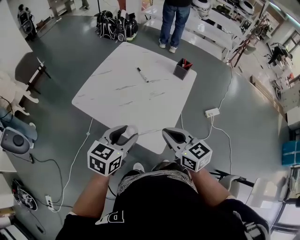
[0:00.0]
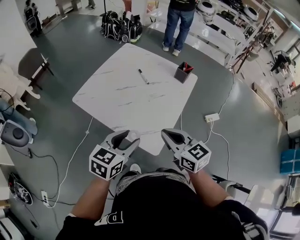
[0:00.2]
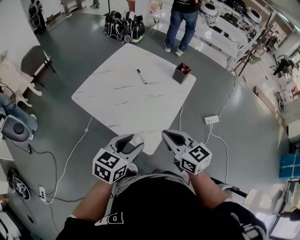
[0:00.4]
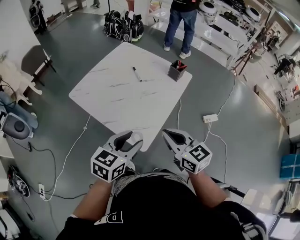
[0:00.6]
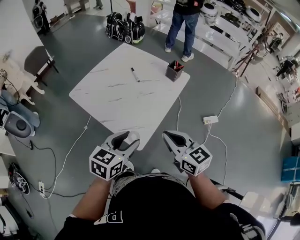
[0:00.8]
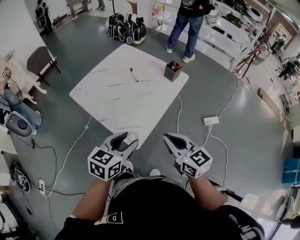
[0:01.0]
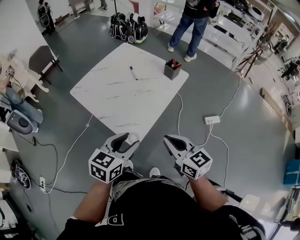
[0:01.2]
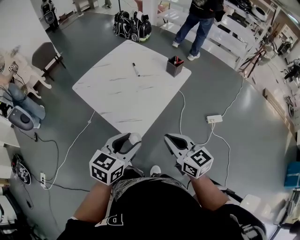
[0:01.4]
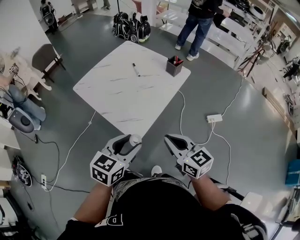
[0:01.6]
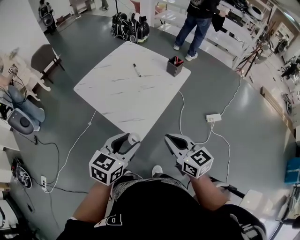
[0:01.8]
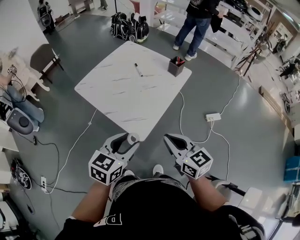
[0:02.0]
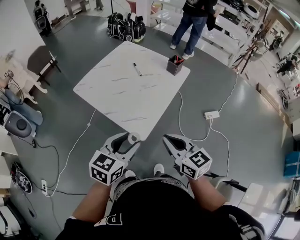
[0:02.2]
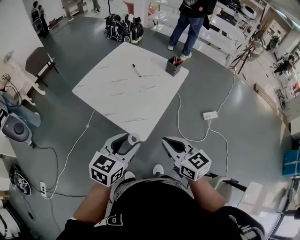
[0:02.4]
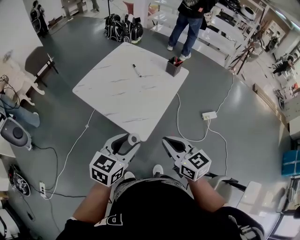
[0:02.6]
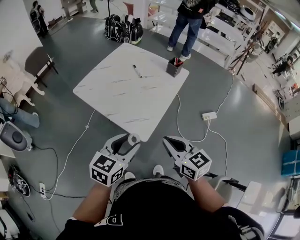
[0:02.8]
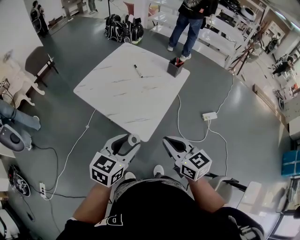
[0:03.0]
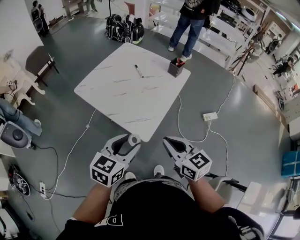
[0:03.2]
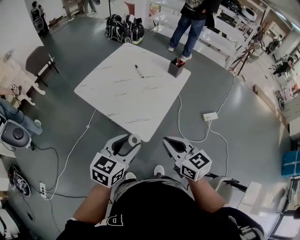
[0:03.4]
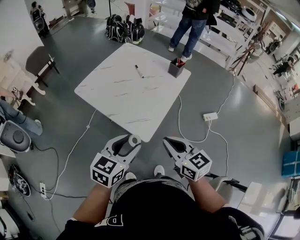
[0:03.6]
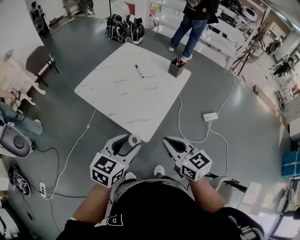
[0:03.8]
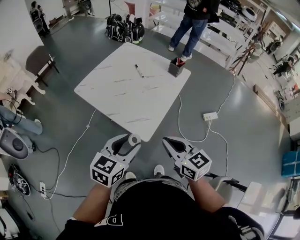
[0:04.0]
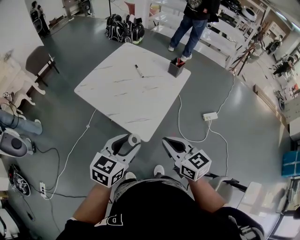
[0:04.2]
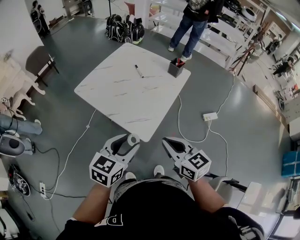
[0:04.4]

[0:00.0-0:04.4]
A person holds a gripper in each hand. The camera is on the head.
0:00.0 to 0:01.4: The grippers both shift to the right and backward by some 20 cm.
0:01.4 to 0:03.0: Both grippers travel together to the left, roughly 10 cm.
0:03.0 to 0:04.4: Neither gripper changes place.

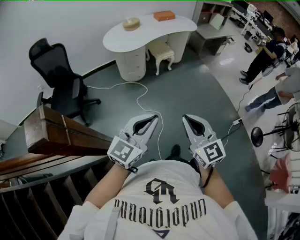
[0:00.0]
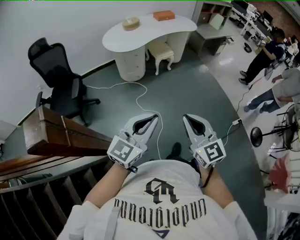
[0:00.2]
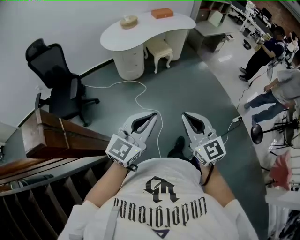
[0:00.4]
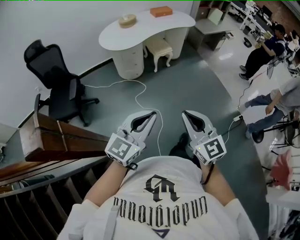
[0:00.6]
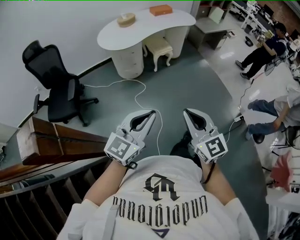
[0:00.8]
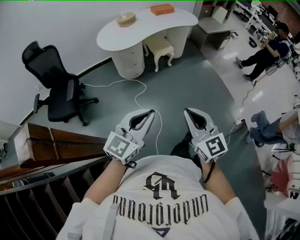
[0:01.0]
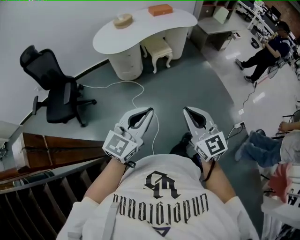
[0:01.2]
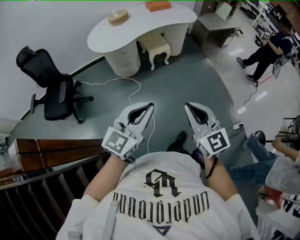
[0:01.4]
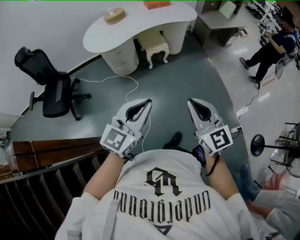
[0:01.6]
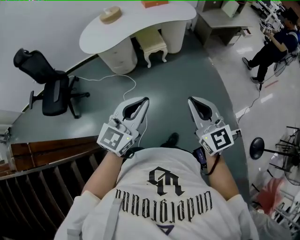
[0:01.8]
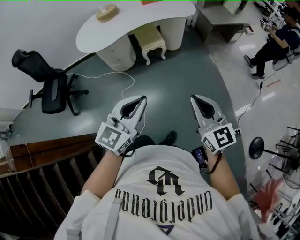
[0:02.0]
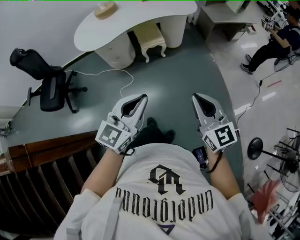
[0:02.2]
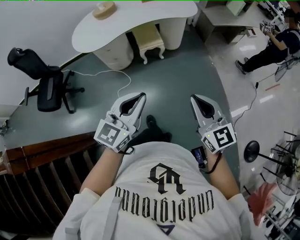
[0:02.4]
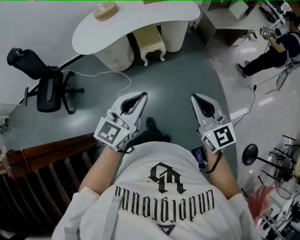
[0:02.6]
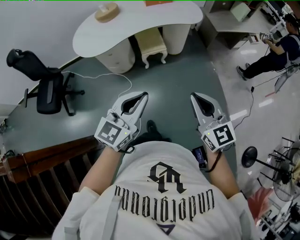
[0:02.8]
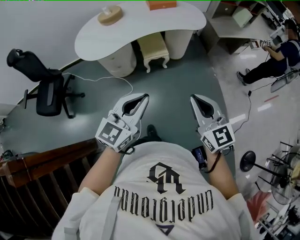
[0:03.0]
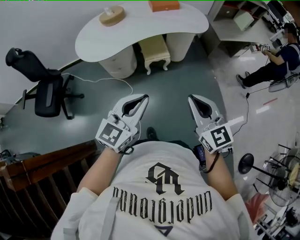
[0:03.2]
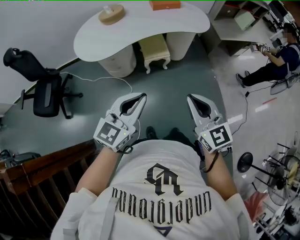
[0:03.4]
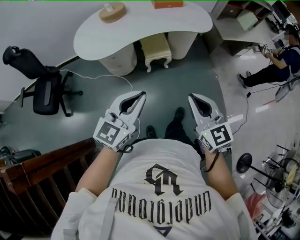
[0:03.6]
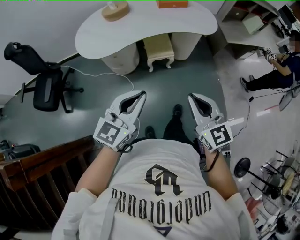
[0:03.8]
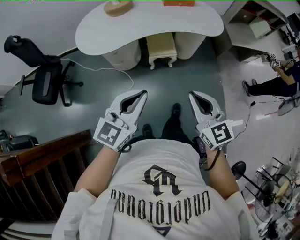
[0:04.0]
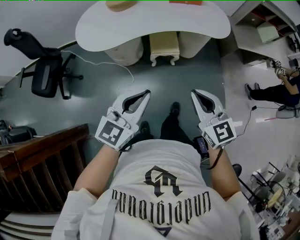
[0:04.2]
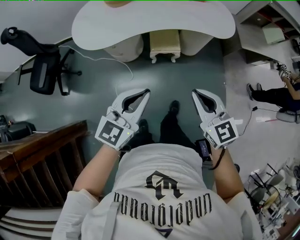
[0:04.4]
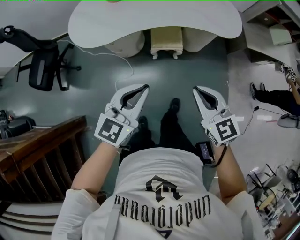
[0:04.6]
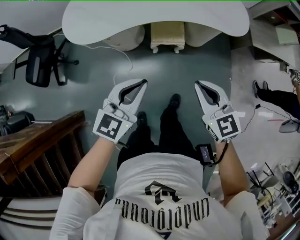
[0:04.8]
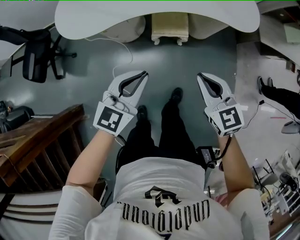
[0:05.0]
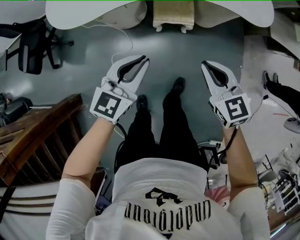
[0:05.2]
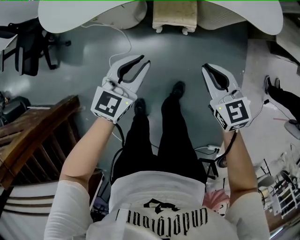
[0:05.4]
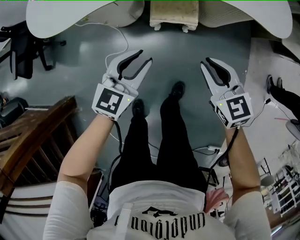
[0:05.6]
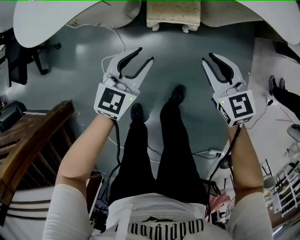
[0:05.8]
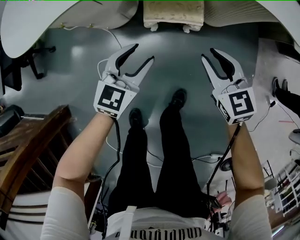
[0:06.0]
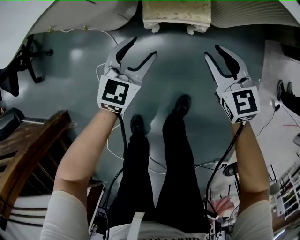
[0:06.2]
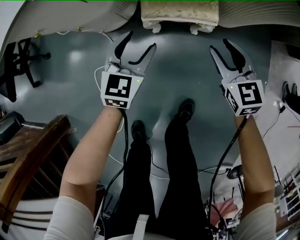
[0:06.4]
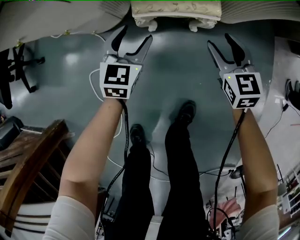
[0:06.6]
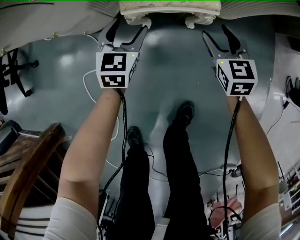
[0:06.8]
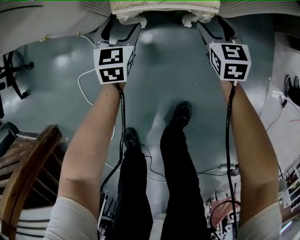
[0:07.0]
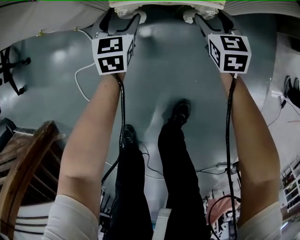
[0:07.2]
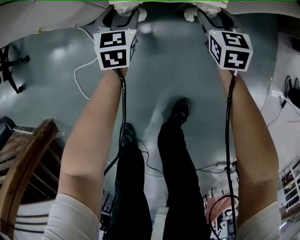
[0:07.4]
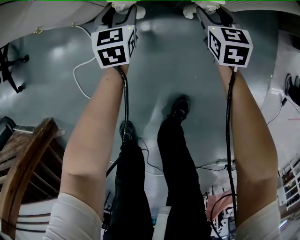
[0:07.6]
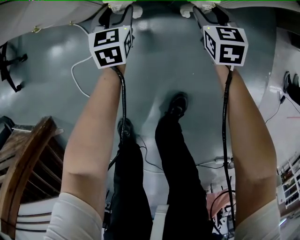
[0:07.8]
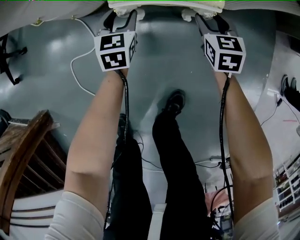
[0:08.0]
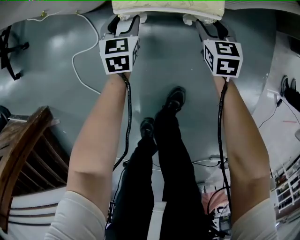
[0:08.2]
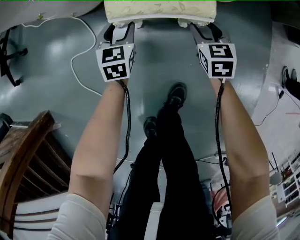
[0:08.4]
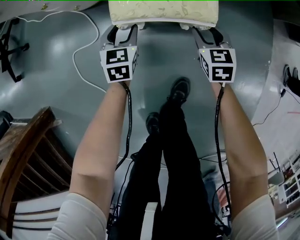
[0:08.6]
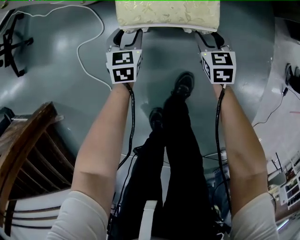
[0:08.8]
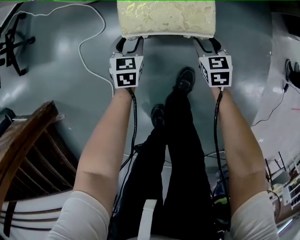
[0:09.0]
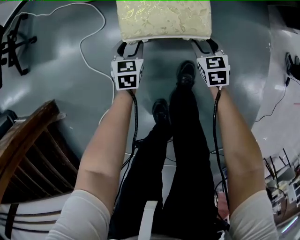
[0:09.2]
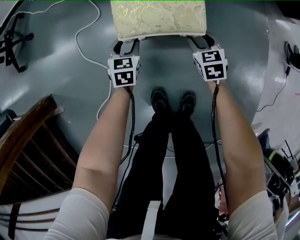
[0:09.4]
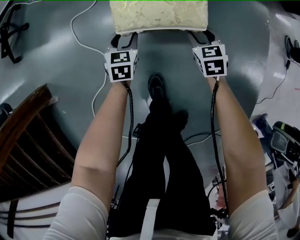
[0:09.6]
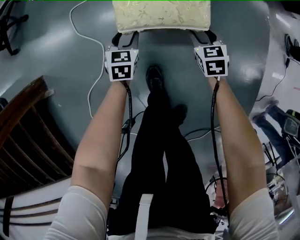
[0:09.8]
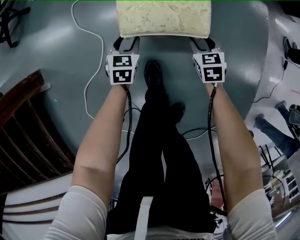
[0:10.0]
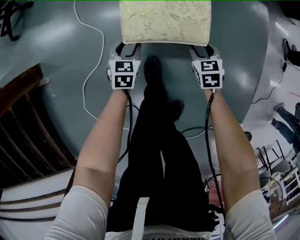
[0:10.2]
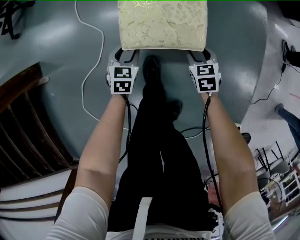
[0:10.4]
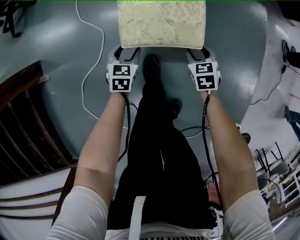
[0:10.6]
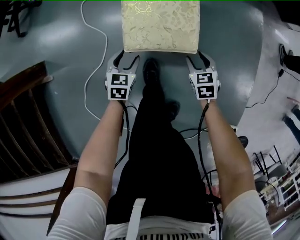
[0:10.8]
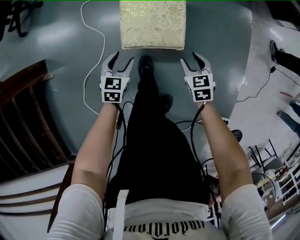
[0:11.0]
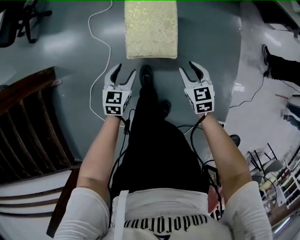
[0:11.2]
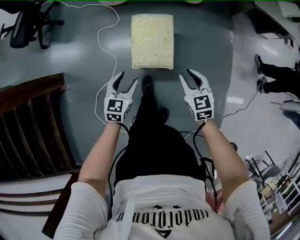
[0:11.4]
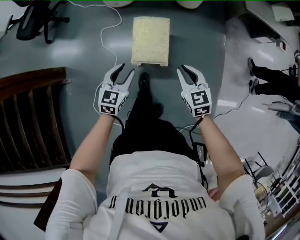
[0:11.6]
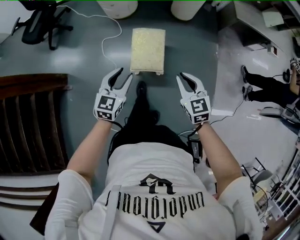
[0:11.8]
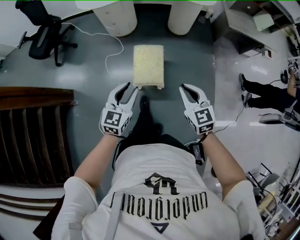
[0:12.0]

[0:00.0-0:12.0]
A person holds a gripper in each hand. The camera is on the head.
0:00.0 to 0:01.6: Both grippers move forward and to the right, roughly 40 cm.
0:01.6 to 0:03.0: Both grippers move forward, approximately 25 cm.
0:03.0 to 0:04.4: Both grippers travel together forward and downward, some 20 cm.
0:04.4 to 0:06.0: The two grippers go about 50 cm downward and forward. The right gripper opens. Meanwhile the left gripper opens its fingers.
0:06.0 to 0:07.6: The right gripper moves downward, some 35 cm, changes its angle by about 20 degrees, and opens, while the left gripper is displaced downward and forward by about 35 cm, and swivels some 30 degrees.
0:07.6 to 0:09.0: Both grippers move backward, approximately 30 cm.
0:09.0 to 0:10.4: Both grippers move backward, some 30 cm.
0:10.4 to 0:12.0: The two grippers go roughly 70 cm upward. The right gripper tips its fingers upward by roughly 30 degrees, and closes its fingers; the left gripper angles its fingers upward, by some 30 degrees.

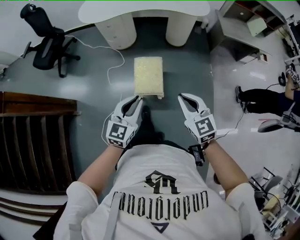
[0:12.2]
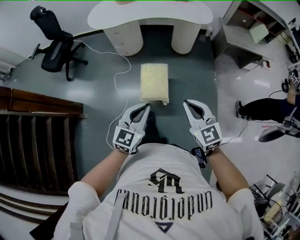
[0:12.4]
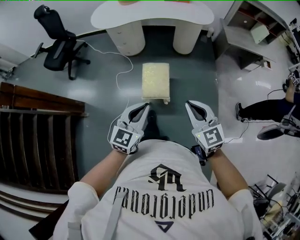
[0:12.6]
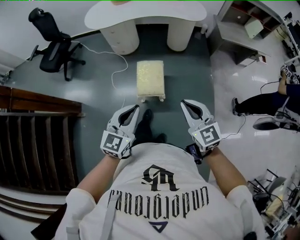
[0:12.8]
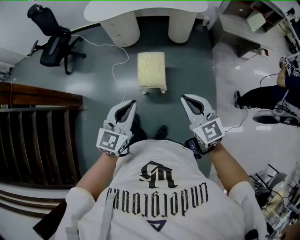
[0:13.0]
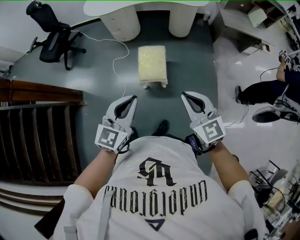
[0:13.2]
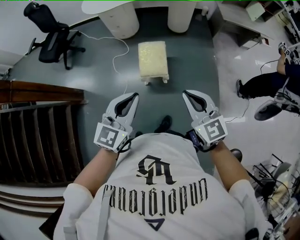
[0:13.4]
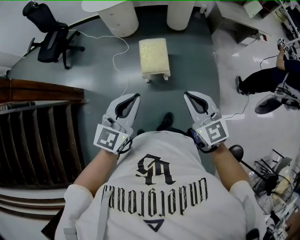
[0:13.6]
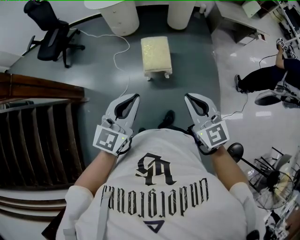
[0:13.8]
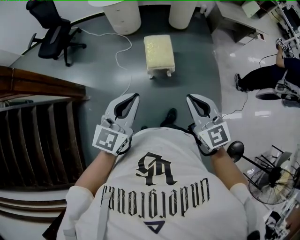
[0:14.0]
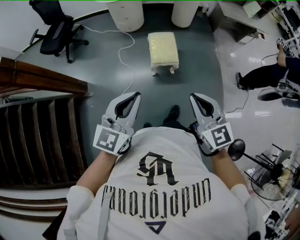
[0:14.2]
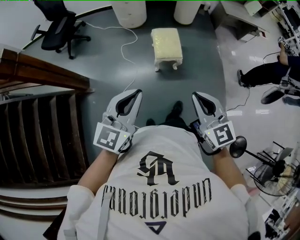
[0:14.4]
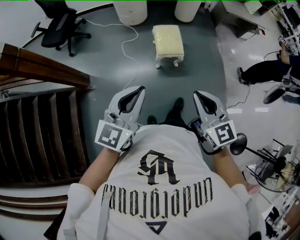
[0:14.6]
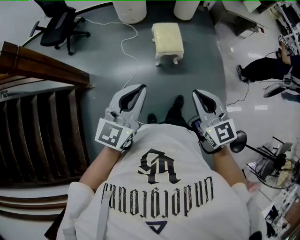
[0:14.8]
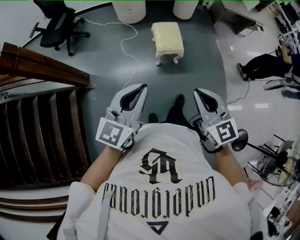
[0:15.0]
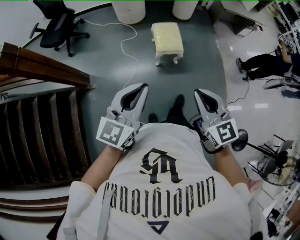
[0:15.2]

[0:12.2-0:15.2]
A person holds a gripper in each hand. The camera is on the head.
0:12.2 to 0:13.8: The two grippers go about 25 cm backward, upward and to the left.
0:13.8 to 0:15.2: The left gripper moves to the left and backward, about 20 cm. Meanwhile the right gripper heads backward and to the left, covering approximately 20 cm.

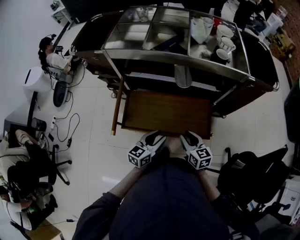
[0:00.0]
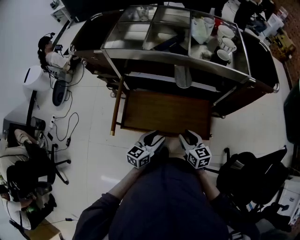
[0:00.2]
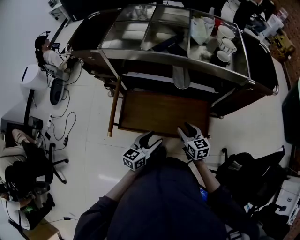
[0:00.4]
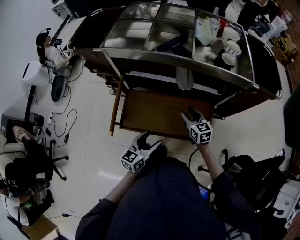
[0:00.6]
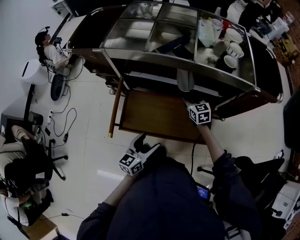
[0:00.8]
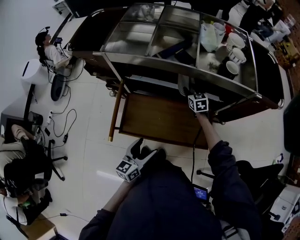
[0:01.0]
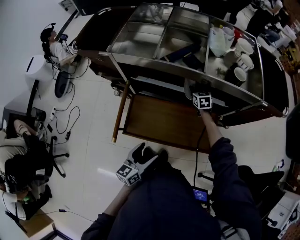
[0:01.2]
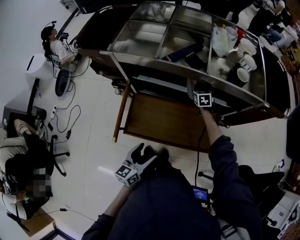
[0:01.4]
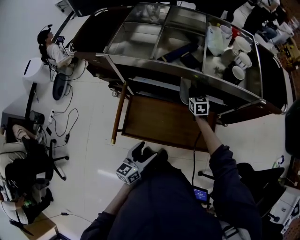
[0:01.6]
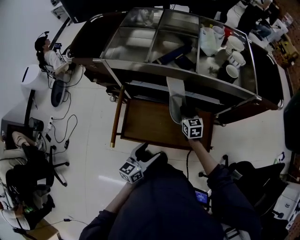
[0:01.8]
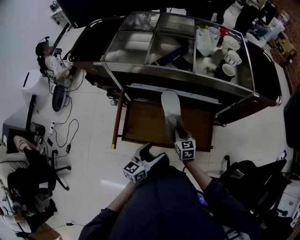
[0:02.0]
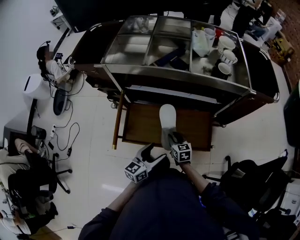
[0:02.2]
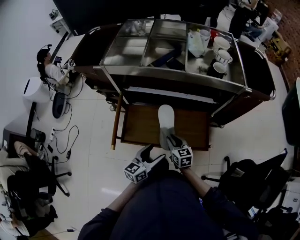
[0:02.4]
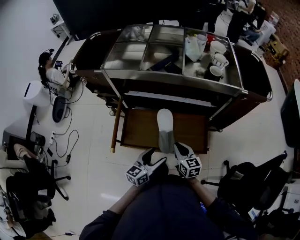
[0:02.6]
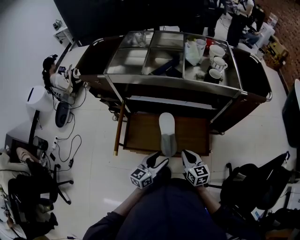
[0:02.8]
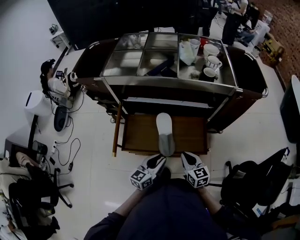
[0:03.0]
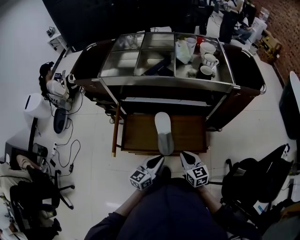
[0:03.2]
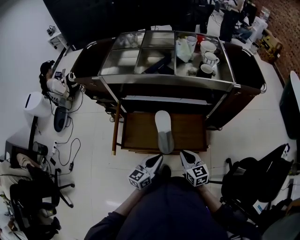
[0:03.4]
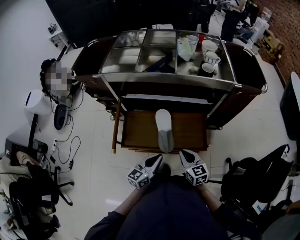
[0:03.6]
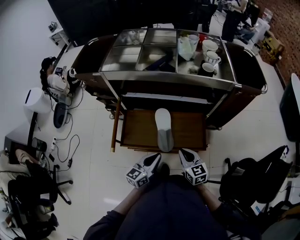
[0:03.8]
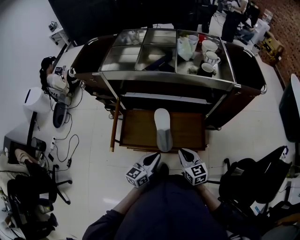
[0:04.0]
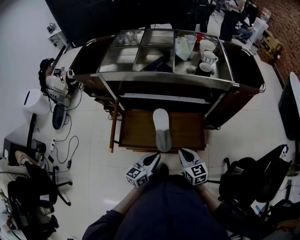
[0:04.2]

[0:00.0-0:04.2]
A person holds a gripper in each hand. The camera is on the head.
0:00.0 to 0:01.4: The right gripper moves forward, approximately 40 cm, rotates some 30 degrees, and closes its fingers. The left gripper is displaced to the left by roughly 10 cm, and opens.
0:01.4 to 0:02.8: The left gripper travels to the right by approximately 10 cm; the right gripper goes some 40 cm backward, turns by about 30 degrees, and opens, then closes again.
0:02.8 to 0:04.2: The left gripper closes its fingers.
